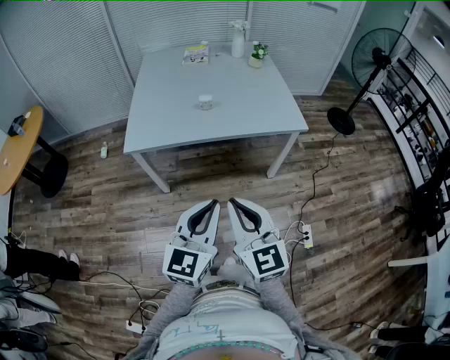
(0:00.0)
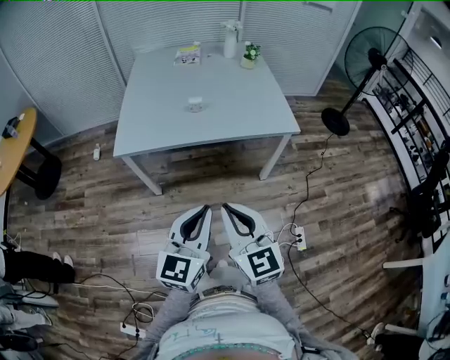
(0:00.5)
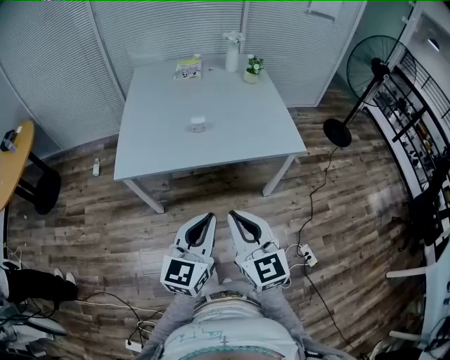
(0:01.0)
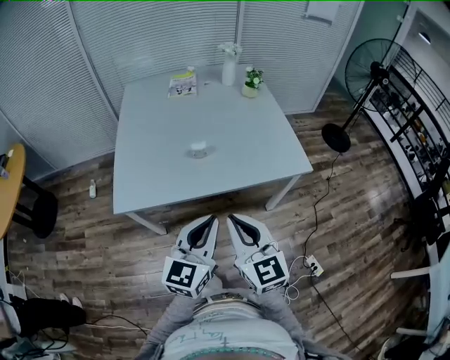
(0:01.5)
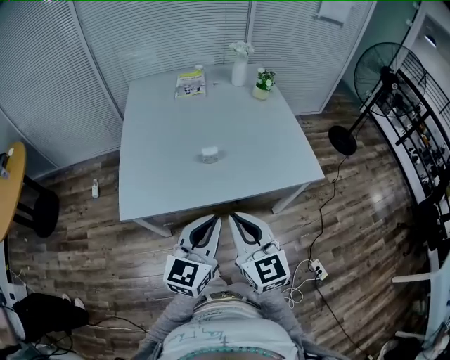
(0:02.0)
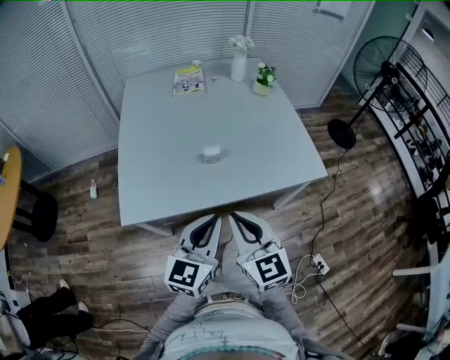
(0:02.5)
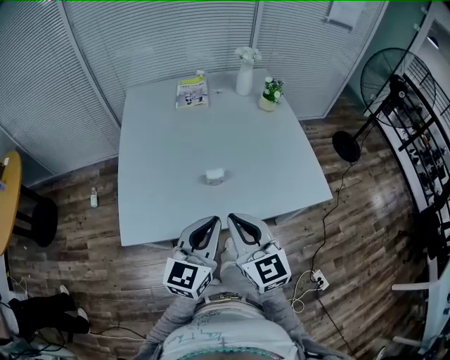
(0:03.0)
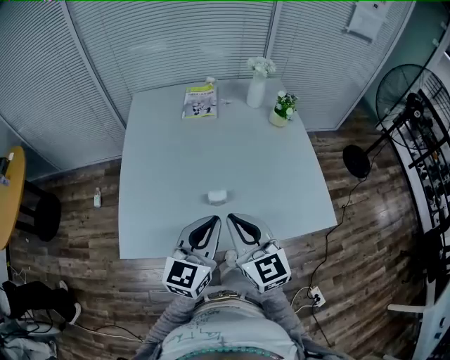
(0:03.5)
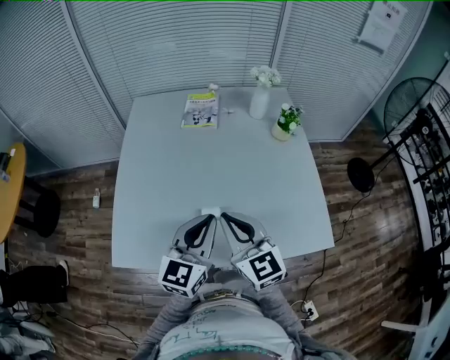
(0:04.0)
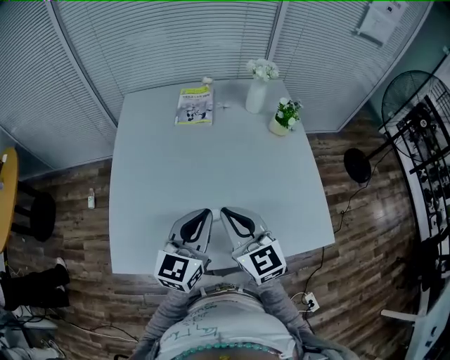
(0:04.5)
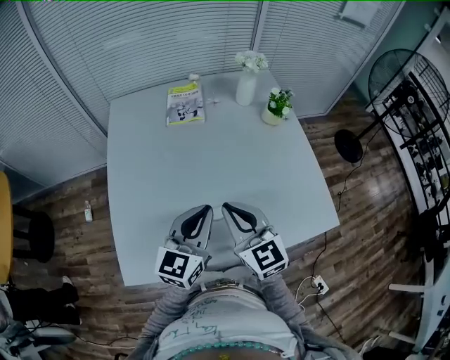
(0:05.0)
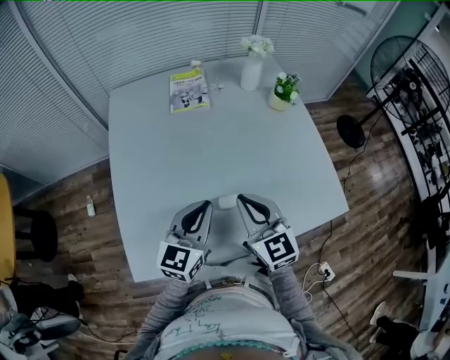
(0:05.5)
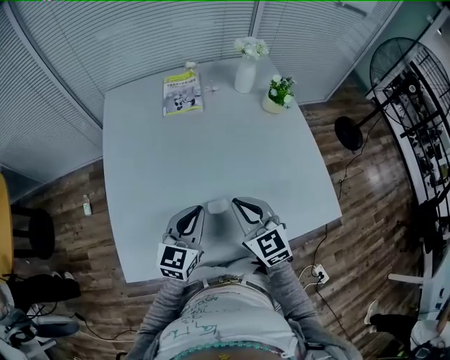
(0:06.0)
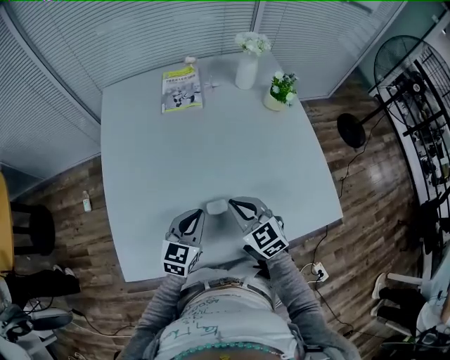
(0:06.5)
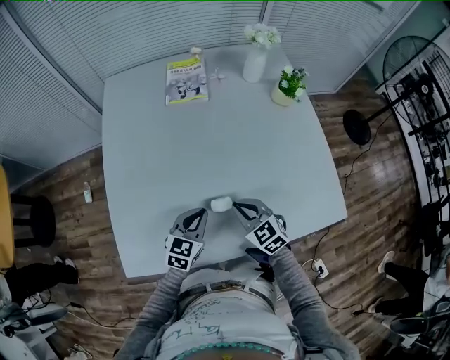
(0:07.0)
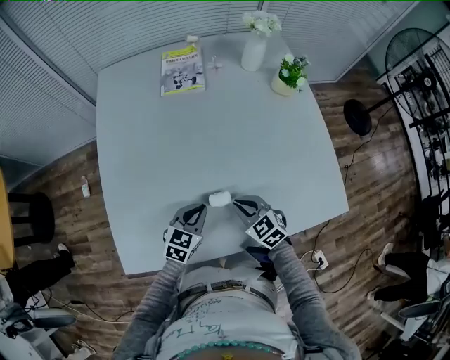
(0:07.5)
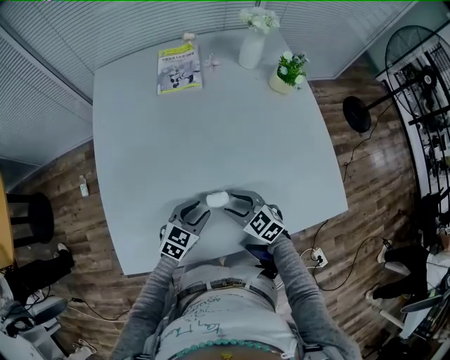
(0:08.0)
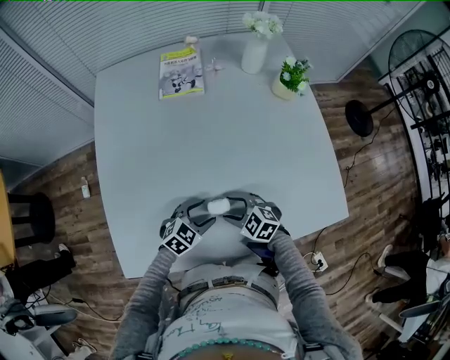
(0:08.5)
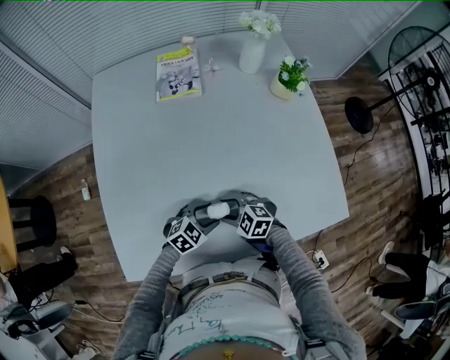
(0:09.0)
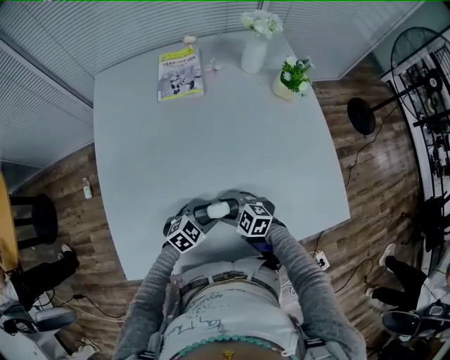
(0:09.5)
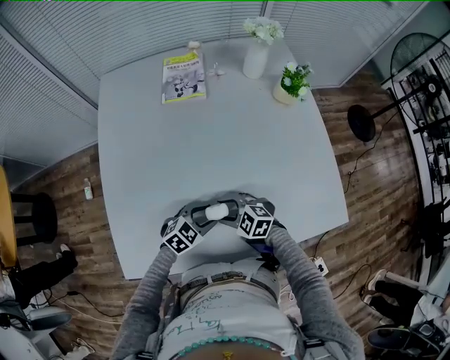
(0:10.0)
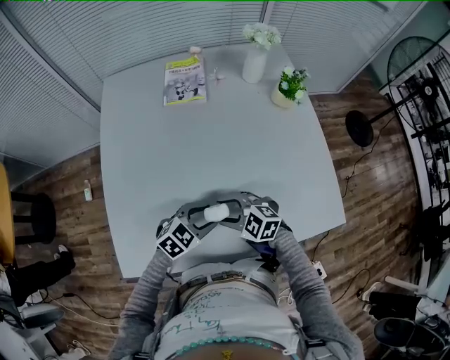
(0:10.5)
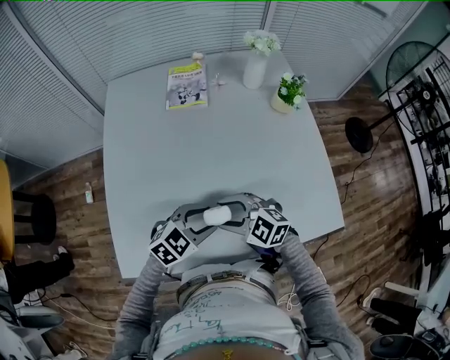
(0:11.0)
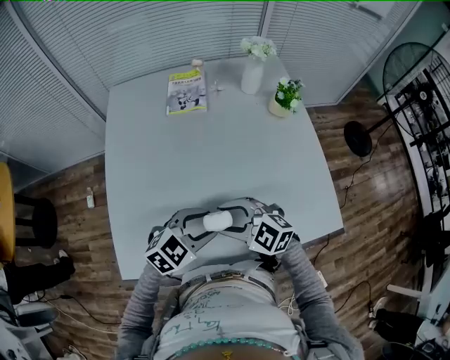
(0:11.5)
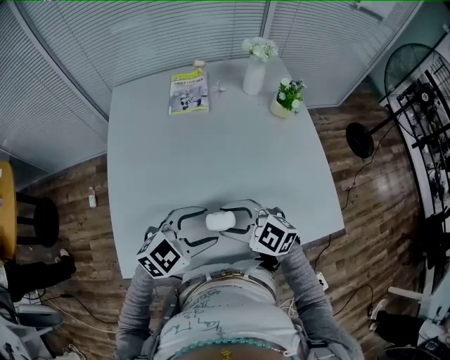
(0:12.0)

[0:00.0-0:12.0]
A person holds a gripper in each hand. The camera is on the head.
0:00.0 to 0:02.0: Both grippers travel together forward, some 30 cm.
0:02.0 to 0:04.0: The two grippers go approximately 30 cm forward.
0:04.0 to 0:06.0: The right gripper heads downward and forward, covering some 10 cm; the left gripper goes approximately 15 cm downward, to the left and forward.
0:06.0 to 0:08.0: Both grippers move downward, about 20 cm. The right gripper swivels roughly 30 degrees, and opens its fingers. The left gripper swivels roughly 30 degrees, and opens.
0:08.0 to 0:10.0: The right gripper turns by approximately 20 degrees.
0:10.0 to 0:12.0: Both grippers travel together upward, approximately 20 cm.

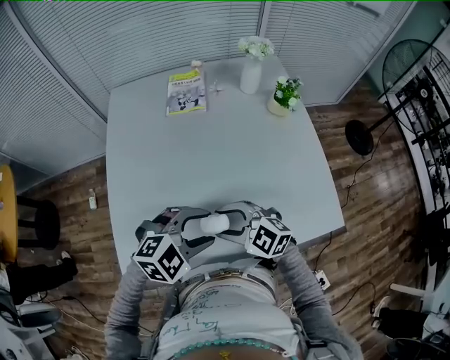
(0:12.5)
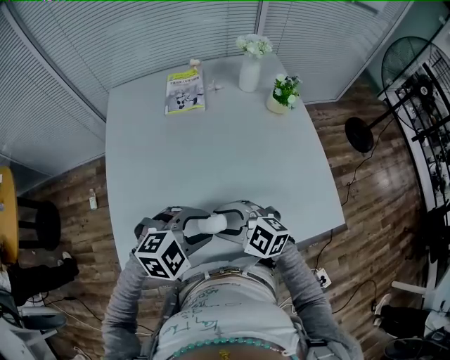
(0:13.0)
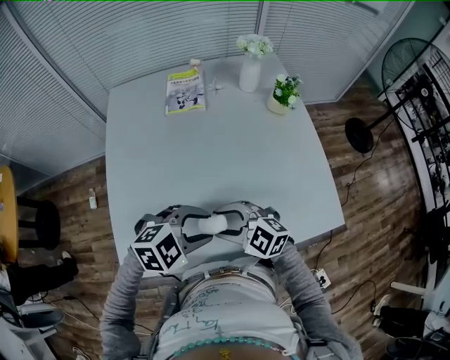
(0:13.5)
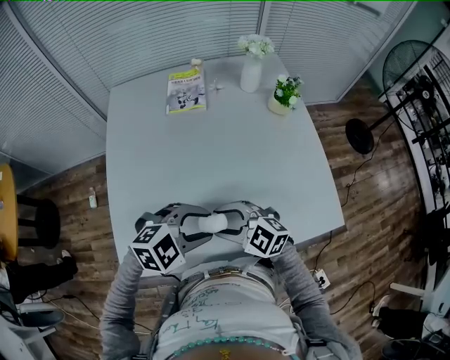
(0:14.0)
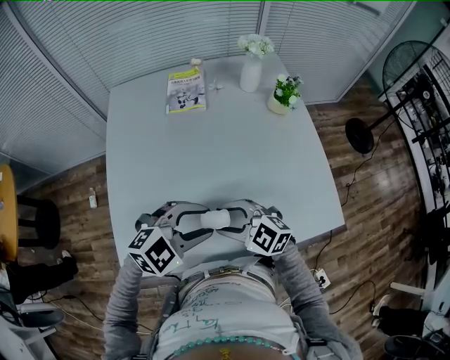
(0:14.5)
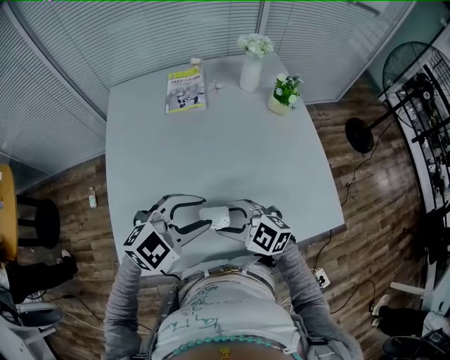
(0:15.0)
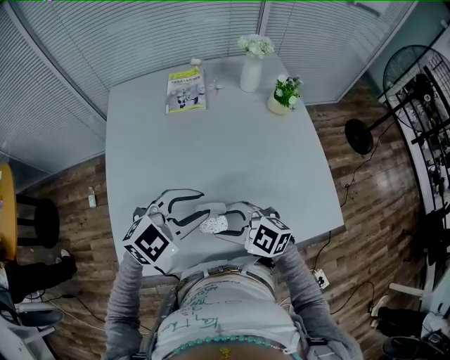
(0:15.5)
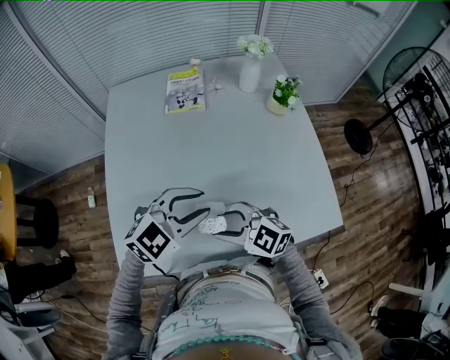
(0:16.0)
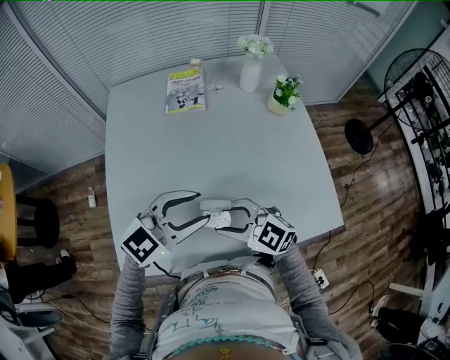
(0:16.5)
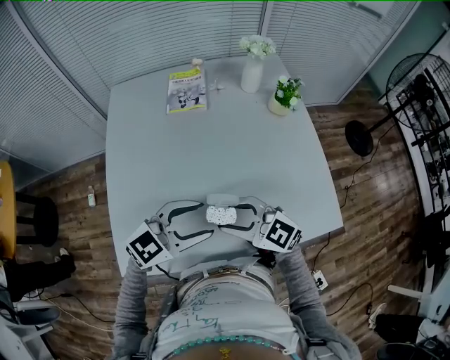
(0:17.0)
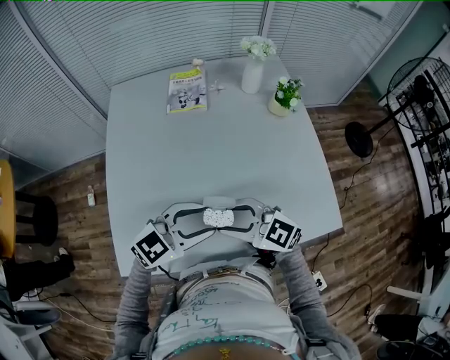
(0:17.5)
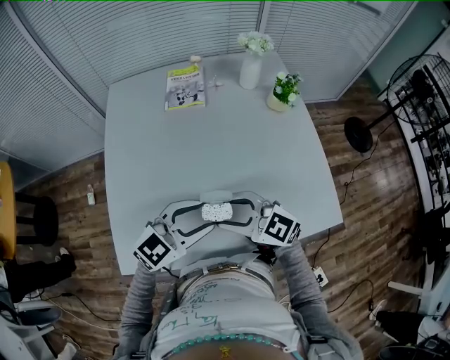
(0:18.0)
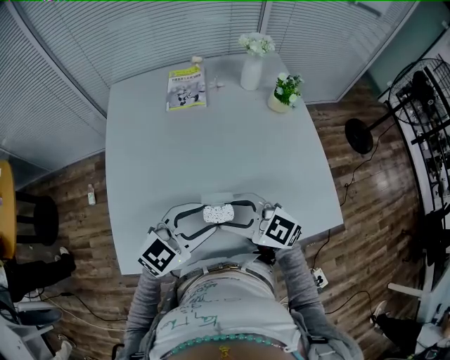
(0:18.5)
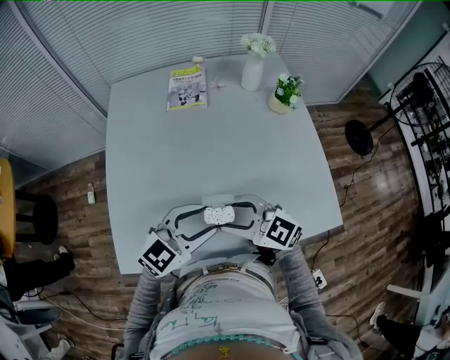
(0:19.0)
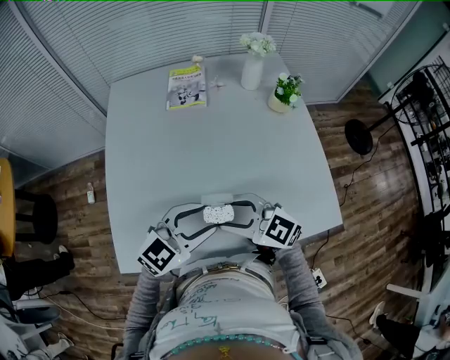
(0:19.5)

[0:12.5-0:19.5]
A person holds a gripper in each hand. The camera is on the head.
0:12.5 to 0:14.5: The grippers make only small movements.
0:14.5 to 0:16.0: The left gripper shifts by about 5 cm.
0:16.0 to 0:19.5: There are only small adjustments of the grippers.

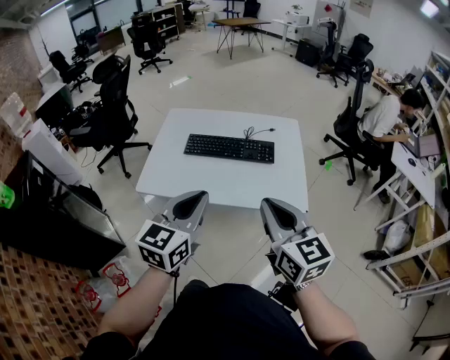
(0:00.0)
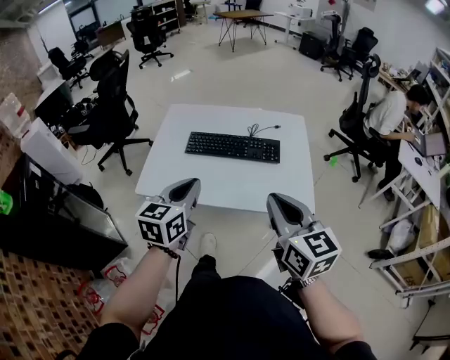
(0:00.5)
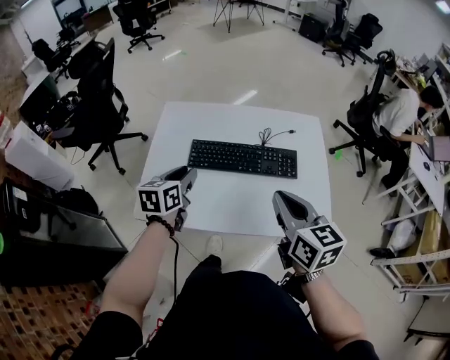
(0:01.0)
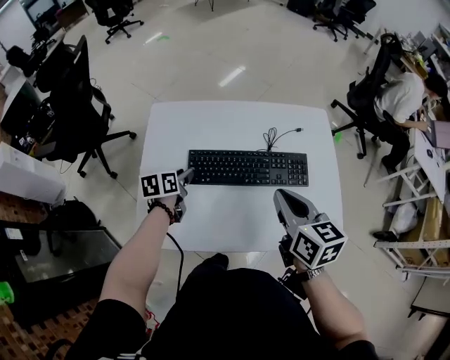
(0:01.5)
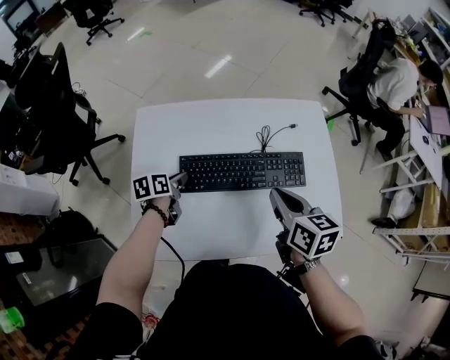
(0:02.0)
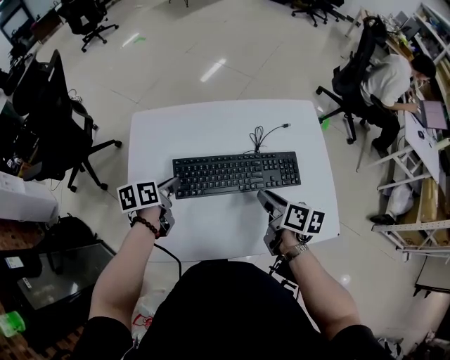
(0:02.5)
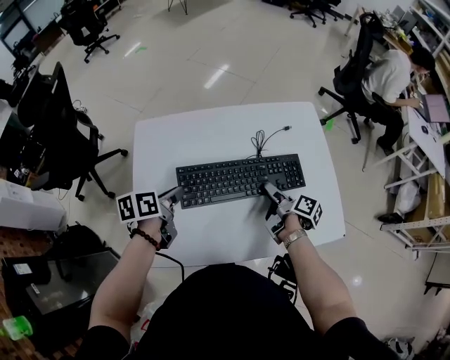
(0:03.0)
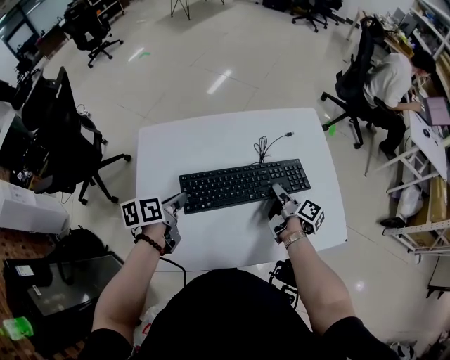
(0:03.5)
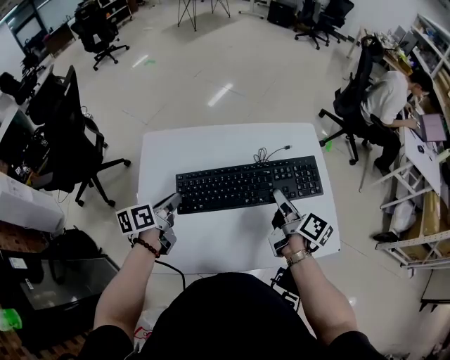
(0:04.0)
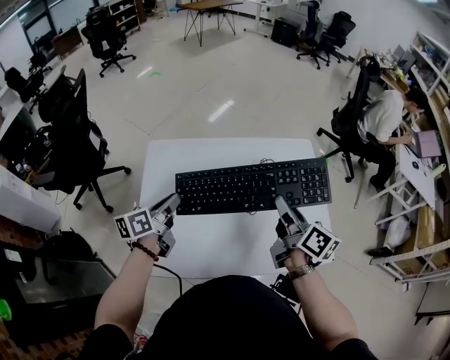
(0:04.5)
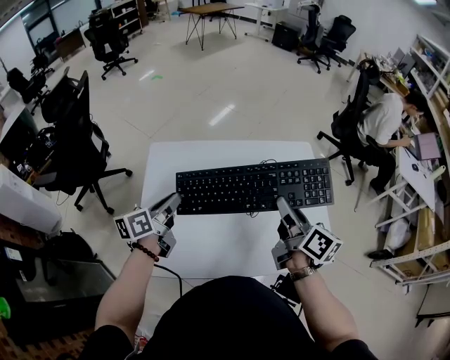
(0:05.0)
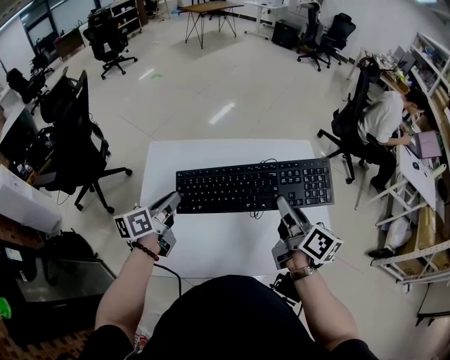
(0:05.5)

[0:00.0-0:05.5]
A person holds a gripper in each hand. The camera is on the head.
0:00.0 to 0:02.0: The left gripper shifts approximately 60 cm forward, downward and to the left, tilts its fingers about 30 degrees downward, and opens its fingers. The right gripper heads forward and downward, covering roughly 35 cm, and swivels some 30 degrees.
0:02.0 to 0:03.5: The right gripper heads downward, forward and to the right, covering roughly 15 cm, twists about 60 degrees clockwise, seen from behind, and opens its fingers; the left gripper moves upward, some 10 cm.
0:03.5 to 0:05.5: The left gripper goes about 10 cm upward, and changes its angle by about 30 degrees. The right gripper is displaced upward by approximately 20 cm, and turns by about 40 degrees.

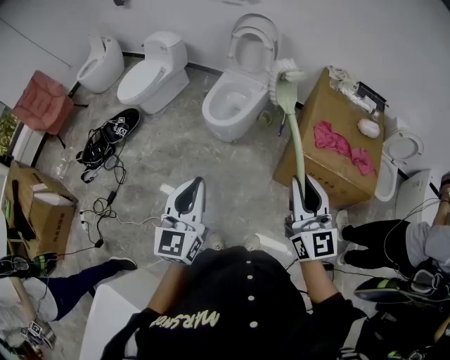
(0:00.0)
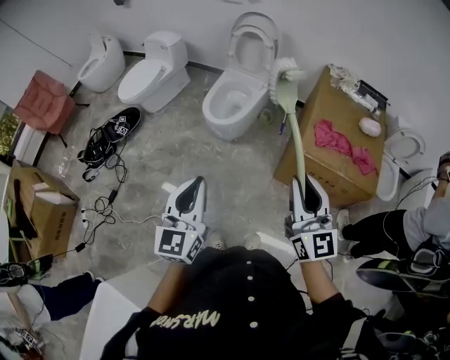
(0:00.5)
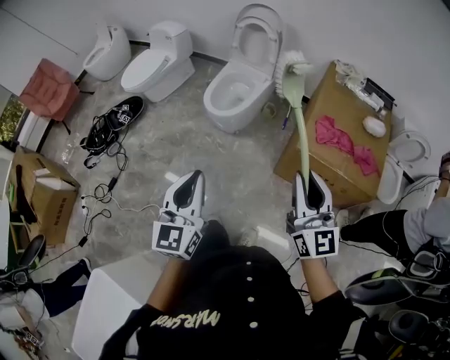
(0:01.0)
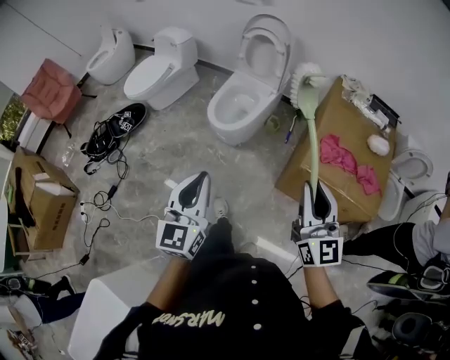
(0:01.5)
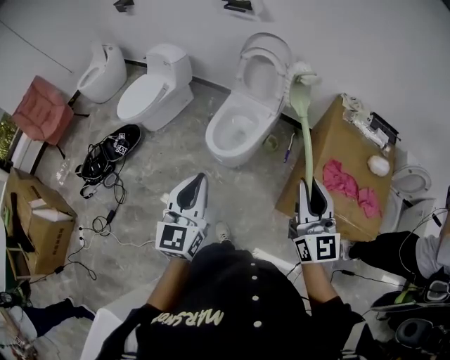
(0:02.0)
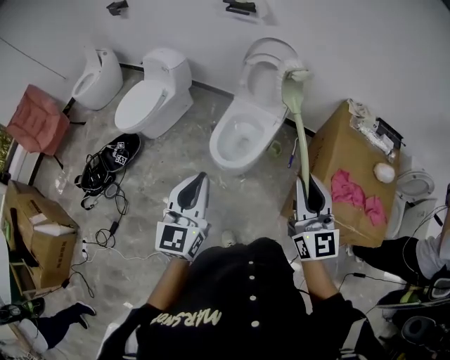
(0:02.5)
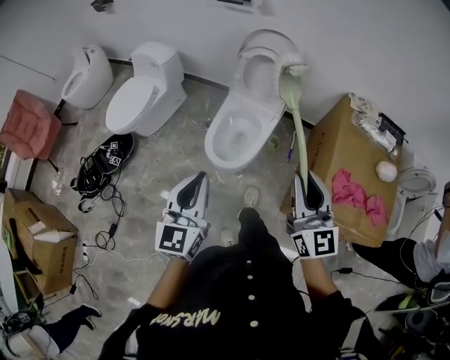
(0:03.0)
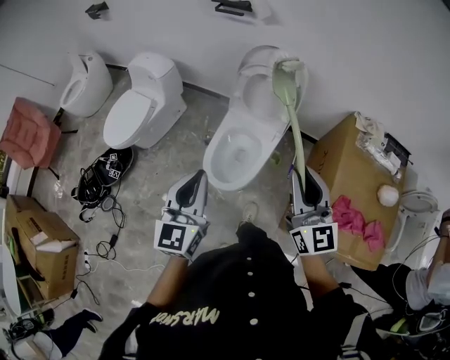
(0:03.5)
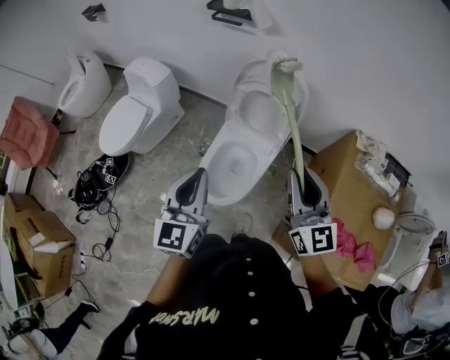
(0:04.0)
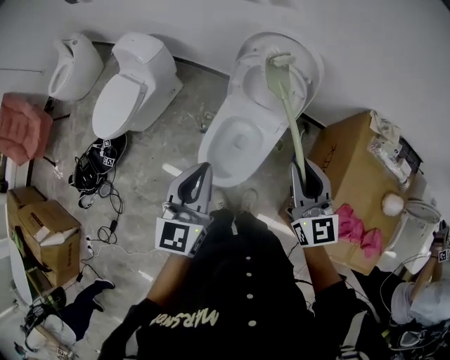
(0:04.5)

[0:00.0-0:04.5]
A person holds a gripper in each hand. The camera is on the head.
0:00.0 to 0:02.0: The two grippers go about 20 cm forward.
0:02.0 to 0:04.5: Both grippers are carried forward, some 50 cm.
